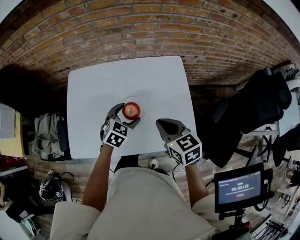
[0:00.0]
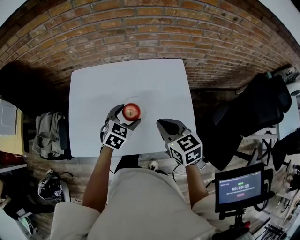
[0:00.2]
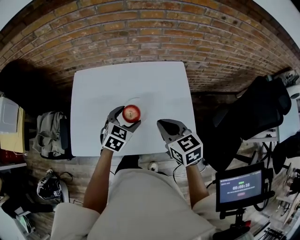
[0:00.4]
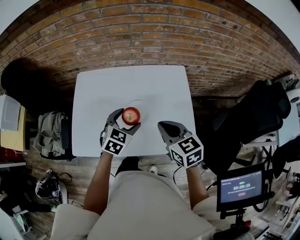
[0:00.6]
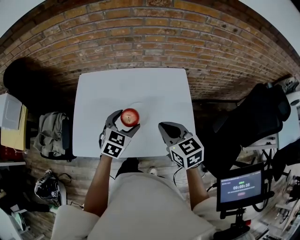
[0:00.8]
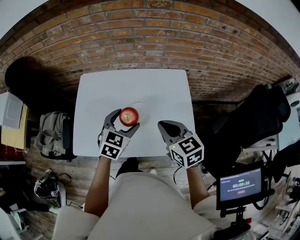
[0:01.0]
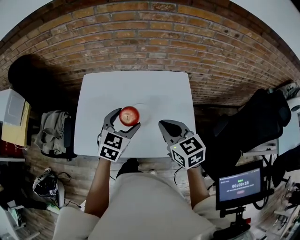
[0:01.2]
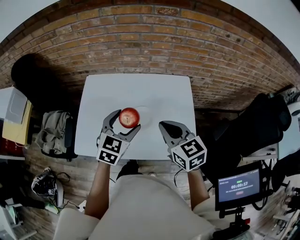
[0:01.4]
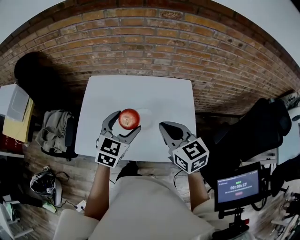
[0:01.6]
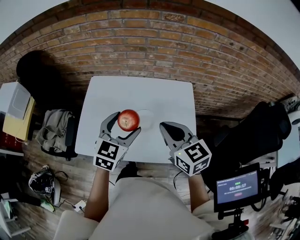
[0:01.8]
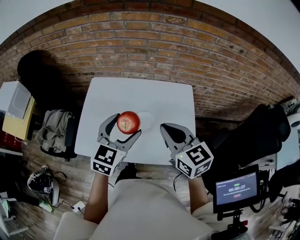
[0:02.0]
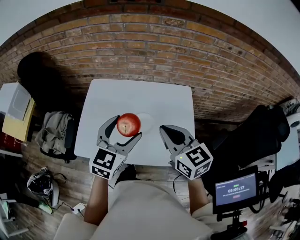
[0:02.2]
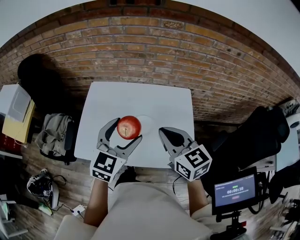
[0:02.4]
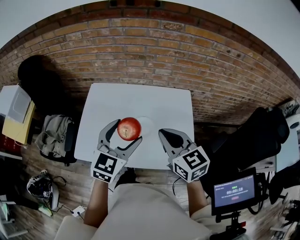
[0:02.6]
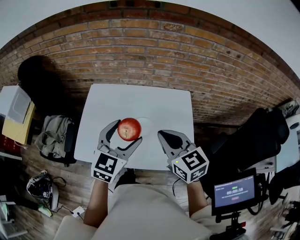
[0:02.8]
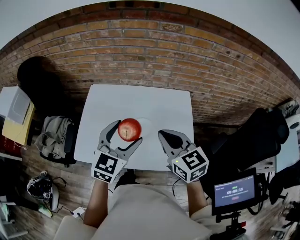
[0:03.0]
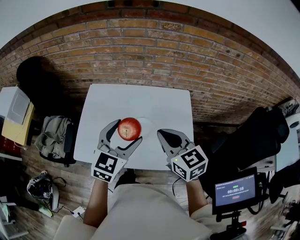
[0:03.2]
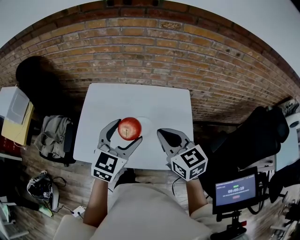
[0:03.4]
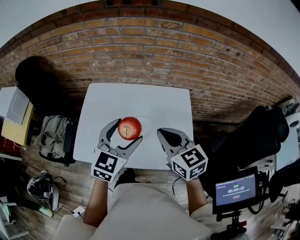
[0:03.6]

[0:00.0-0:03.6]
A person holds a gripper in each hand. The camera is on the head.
0:00.0 to 0:01.8: The left gripper heads upward, covering some 15 cm, and swivels about 30 degrees, while the right gripper is displaced upward by approximately 10 cm.
0:01.8 to 0:03.6: The grippers stay close to where they were, moving slightly.

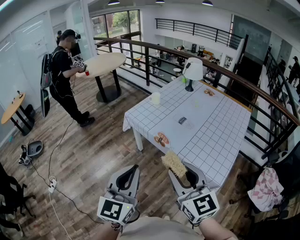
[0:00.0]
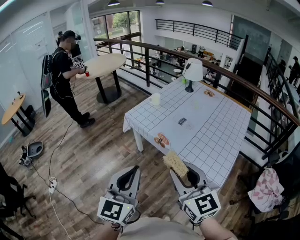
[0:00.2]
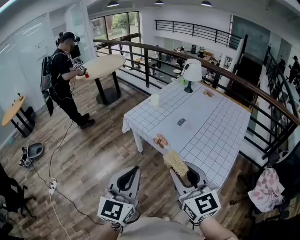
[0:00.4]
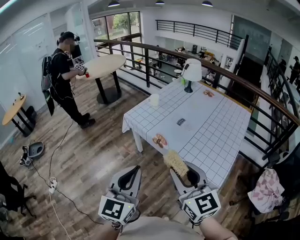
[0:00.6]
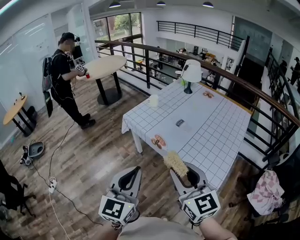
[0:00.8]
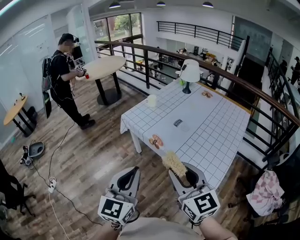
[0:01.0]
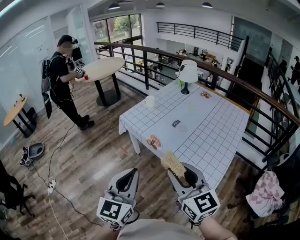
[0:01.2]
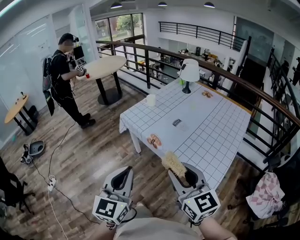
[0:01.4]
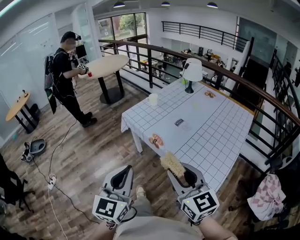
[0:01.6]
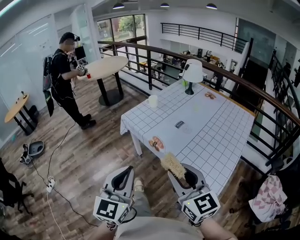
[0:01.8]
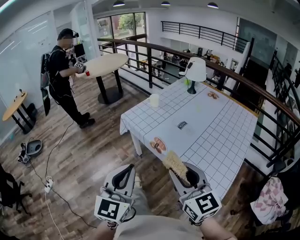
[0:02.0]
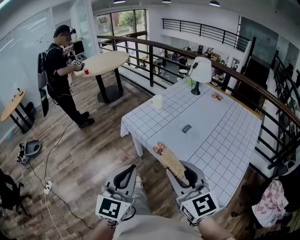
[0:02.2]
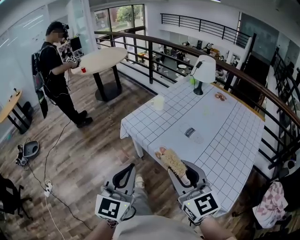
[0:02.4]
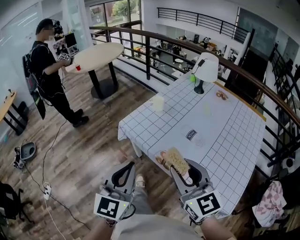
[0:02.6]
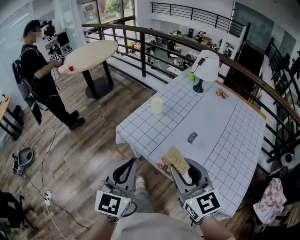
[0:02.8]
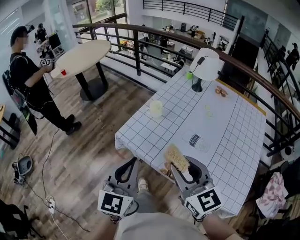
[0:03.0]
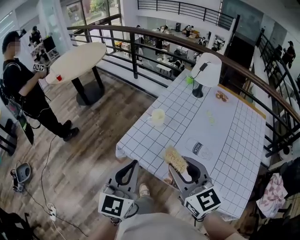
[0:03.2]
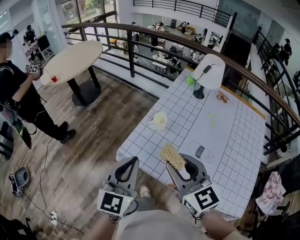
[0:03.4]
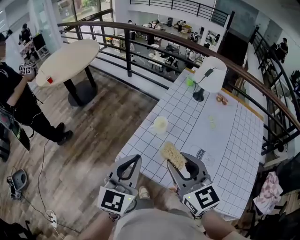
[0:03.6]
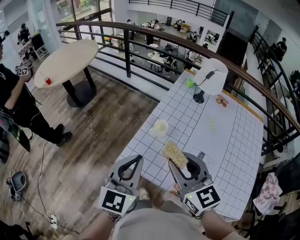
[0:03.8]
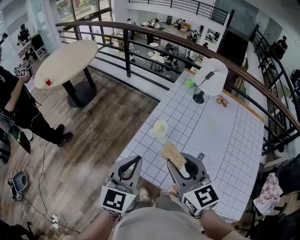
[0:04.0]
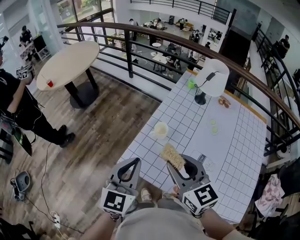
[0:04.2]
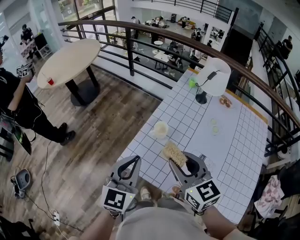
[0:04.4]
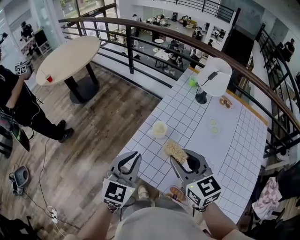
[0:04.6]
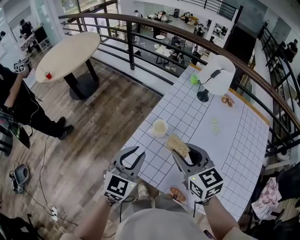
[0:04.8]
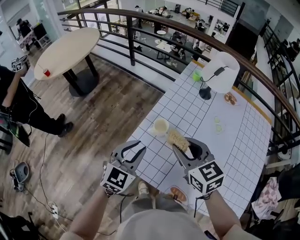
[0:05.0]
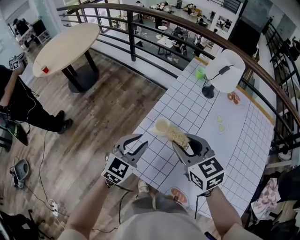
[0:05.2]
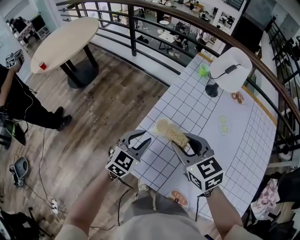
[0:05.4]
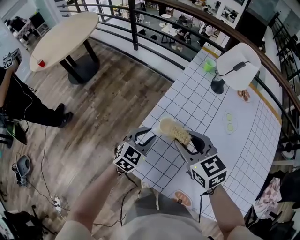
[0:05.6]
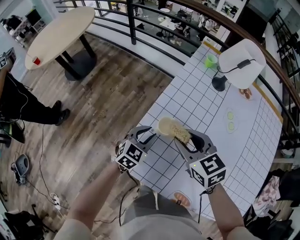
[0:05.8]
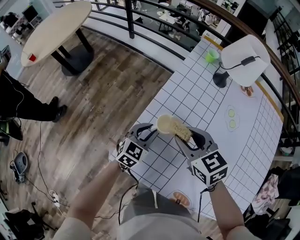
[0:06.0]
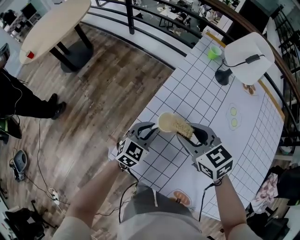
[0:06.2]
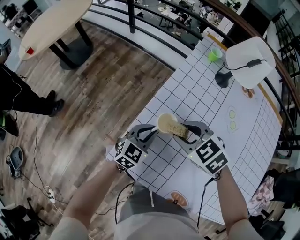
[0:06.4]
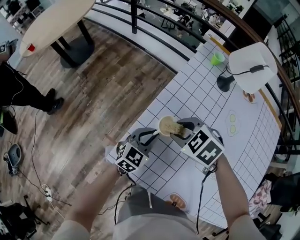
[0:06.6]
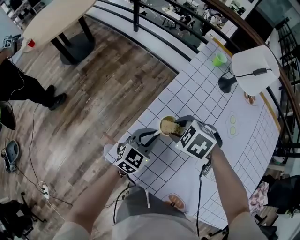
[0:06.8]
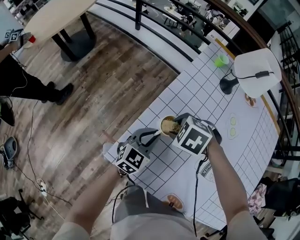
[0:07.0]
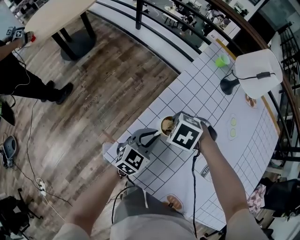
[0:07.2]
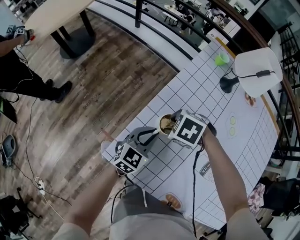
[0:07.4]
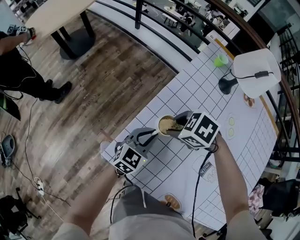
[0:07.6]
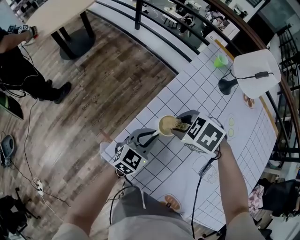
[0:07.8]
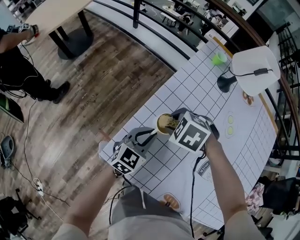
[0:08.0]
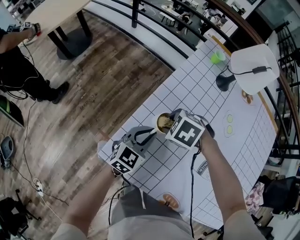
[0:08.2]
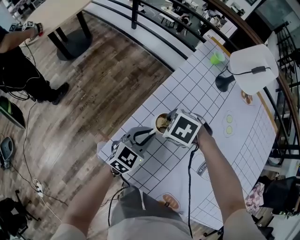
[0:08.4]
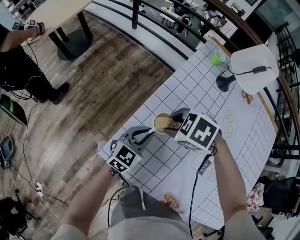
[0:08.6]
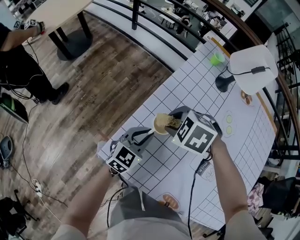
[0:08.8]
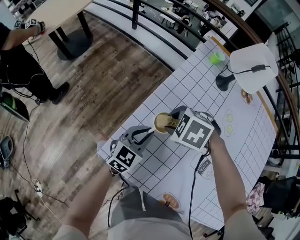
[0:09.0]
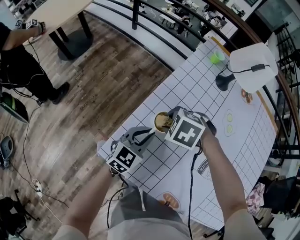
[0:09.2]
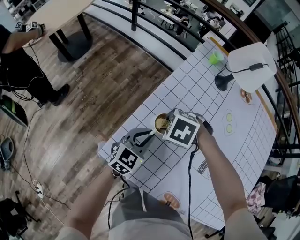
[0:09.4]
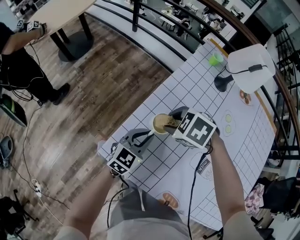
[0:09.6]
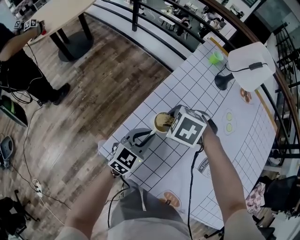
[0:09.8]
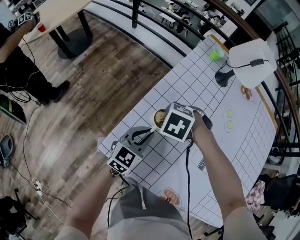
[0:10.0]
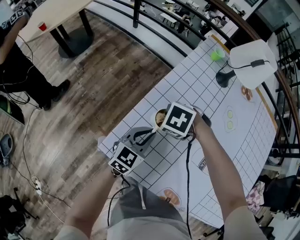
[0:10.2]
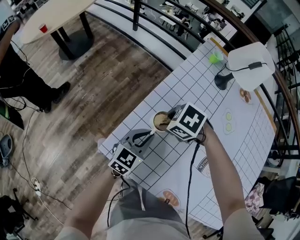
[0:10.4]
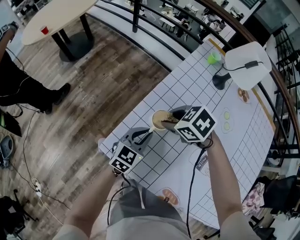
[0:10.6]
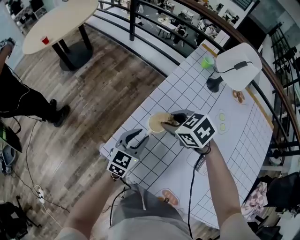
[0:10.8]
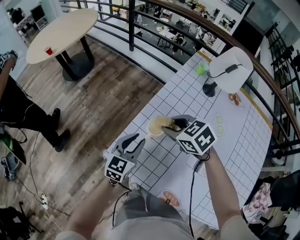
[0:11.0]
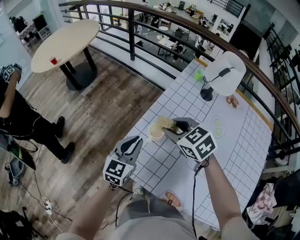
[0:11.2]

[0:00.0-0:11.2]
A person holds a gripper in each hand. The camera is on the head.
0:00.0 to 0:01.6: The left gripper changes place by roughly 5 cm. Meanwhile the right gripper goes about 5 cm to the right.
0:01.6 to 0:03.2: Both grippers are carried forward, some 40 cm.
0:03.2 to 0:04.8: Both grippers move forward, roughly 20 cm. The left gripper swivels some 20 degrees.
0:04.8 to 0:06.4: Both grippers move downward and forward, approximately 25 cm. The right gripper swivels approximately 40 degrees.
0:06.4 to 0:08.0: The right gripper heads downward, covering approximately 5 cm, and swivels some 30 degrees.
0:08.0 to 0:09.6: The grippers make only small movements.
0:09.6 to 0:11.2: The grippers both shift upward by some 15 cm. The right gripper swivels roughly 40 degrees.

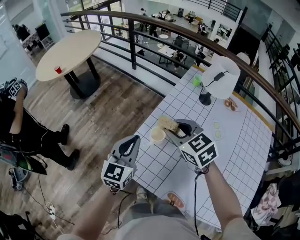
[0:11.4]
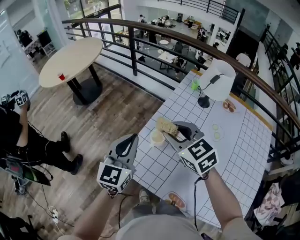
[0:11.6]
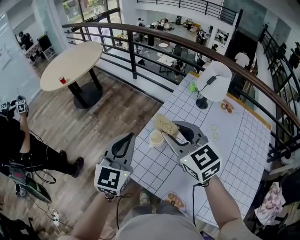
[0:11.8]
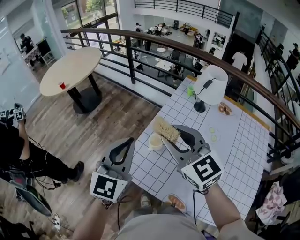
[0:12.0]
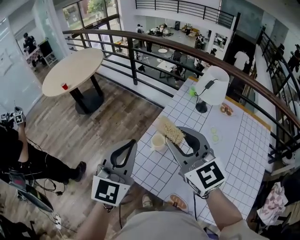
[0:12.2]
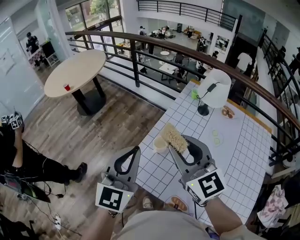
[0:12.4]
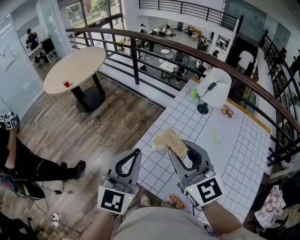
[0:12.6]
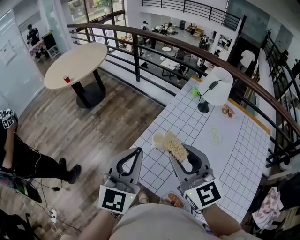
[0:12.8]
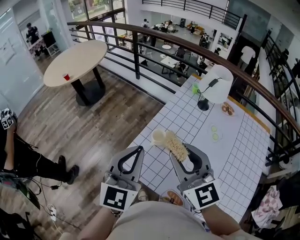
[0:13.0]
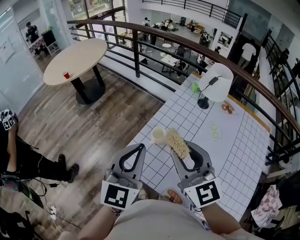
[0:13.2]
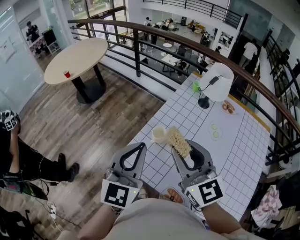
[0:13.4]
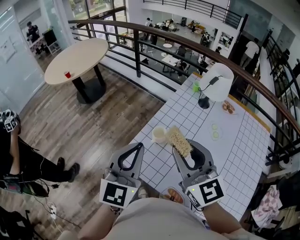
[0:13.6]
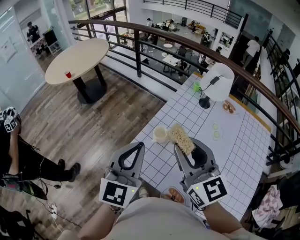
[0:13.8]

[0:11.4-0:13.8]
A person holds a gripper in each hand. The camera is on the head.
0:11.4 to 0:12.6: The grippers both shift upward and backward by about 20 cm. The right gripper points its fingers about 30 degrees further upward.
0:12.6 to 0:13.8: The grippers stay close to where they were, moving slightly.

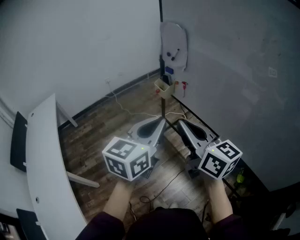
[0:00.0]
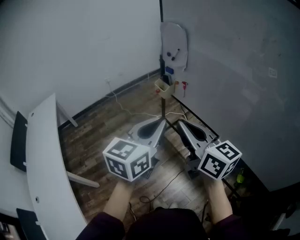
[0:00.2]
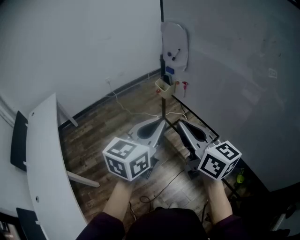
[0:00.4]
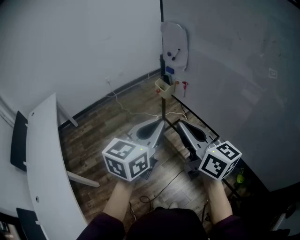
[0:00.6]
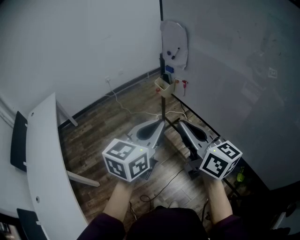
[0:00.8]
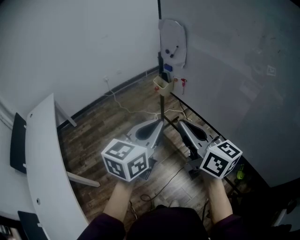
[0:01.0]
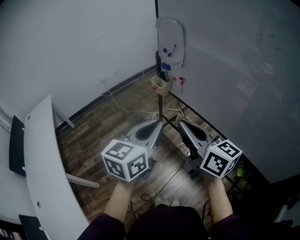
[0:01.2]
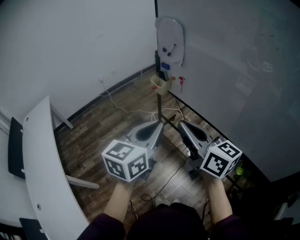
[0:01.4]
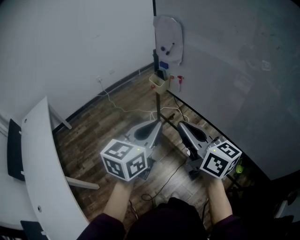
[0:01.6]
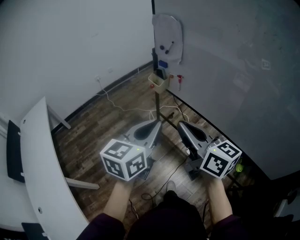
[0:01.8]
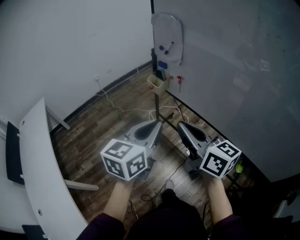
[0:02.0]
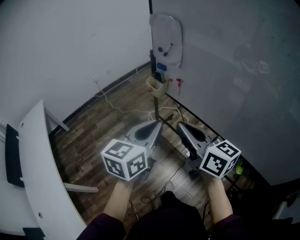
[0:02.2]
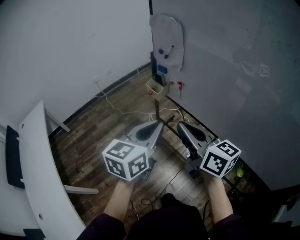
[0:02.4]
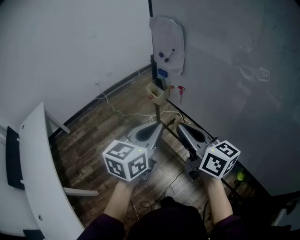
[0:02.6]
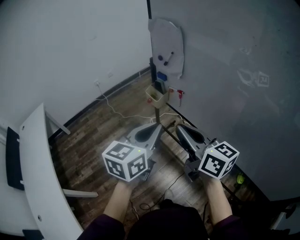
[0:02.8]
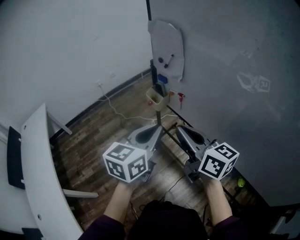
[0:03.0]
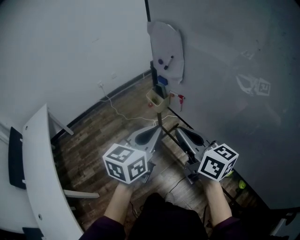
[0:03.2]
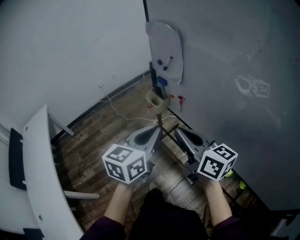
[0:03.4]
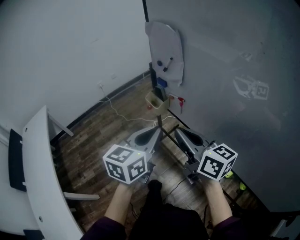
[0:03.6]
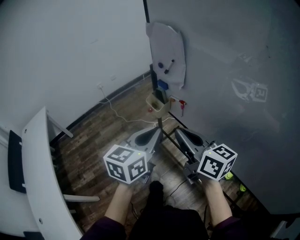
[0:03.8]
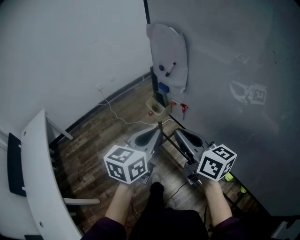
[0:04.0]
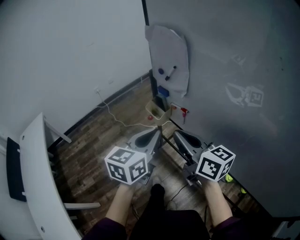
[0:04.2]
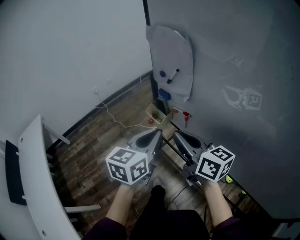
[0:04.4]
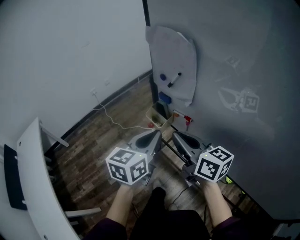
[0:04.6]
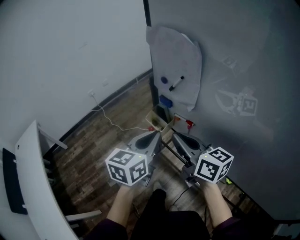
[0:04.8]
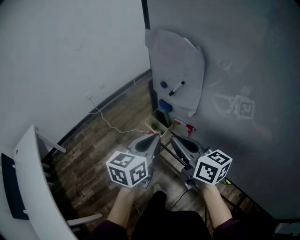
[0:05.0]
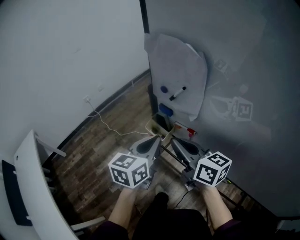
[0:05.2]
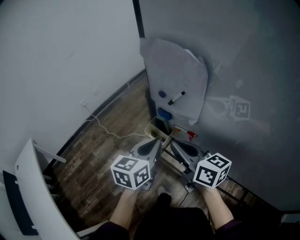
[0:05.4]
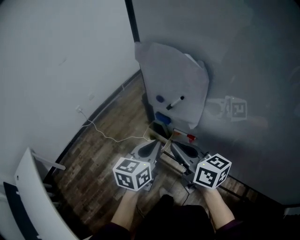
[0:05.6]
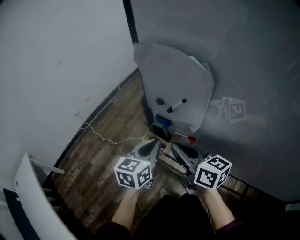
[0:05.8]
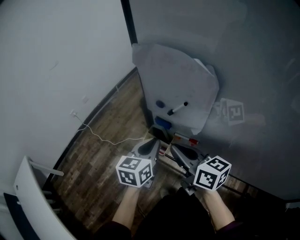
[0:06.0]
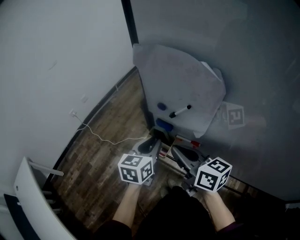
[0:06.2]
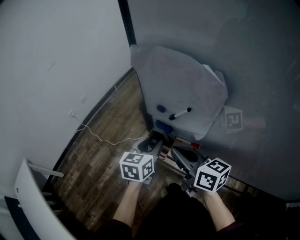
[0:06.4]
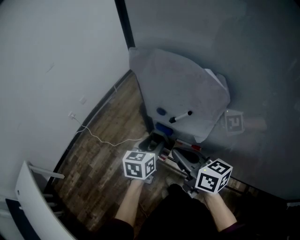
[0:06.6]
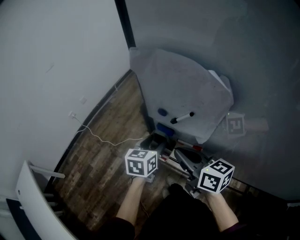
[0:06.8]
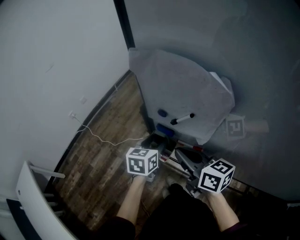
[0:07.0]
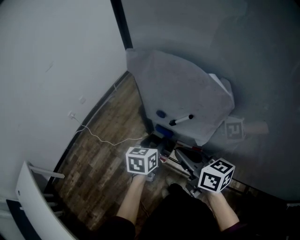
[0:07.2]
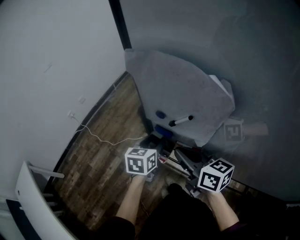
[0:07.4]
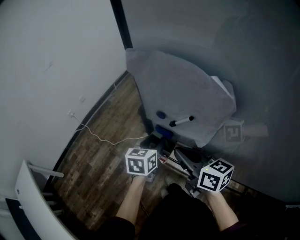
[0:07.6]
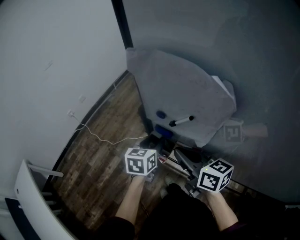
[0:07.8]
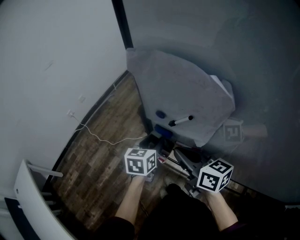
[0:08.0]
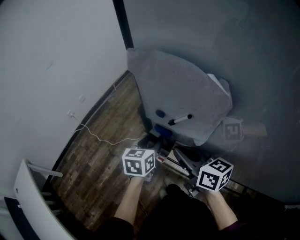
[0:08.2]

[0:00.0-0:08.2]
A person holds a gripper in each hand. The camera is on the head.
0:00.0 to 0:01.6: The grippers make only small movements.
0:01.6 to 0:03.2: The grippers both shift forward by about 15 cm.
0:03.2 to 0:05.0: Both grippers move forward, approximately 20 cm.
0:05.0 to 0:06.6: The left gripper is displaced forward and downward by approximately 20 cm, and opens up; the right gripper is displaced forward by some 10 cm.
0:06.6 to 0:08.2: The grippers move only a little.
